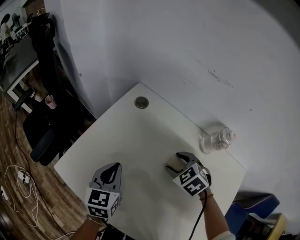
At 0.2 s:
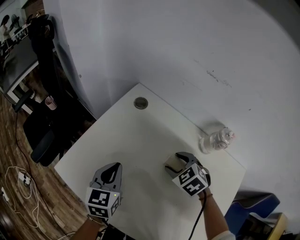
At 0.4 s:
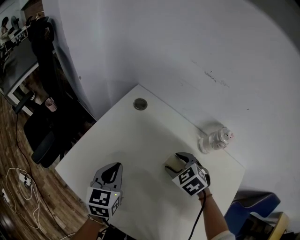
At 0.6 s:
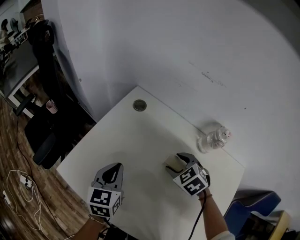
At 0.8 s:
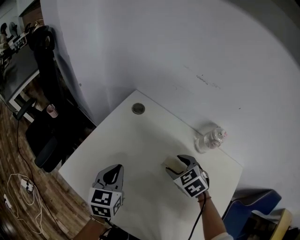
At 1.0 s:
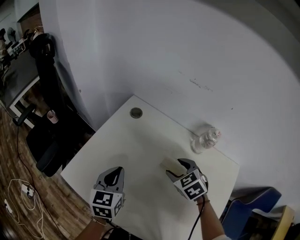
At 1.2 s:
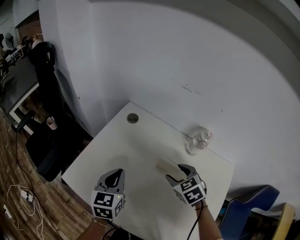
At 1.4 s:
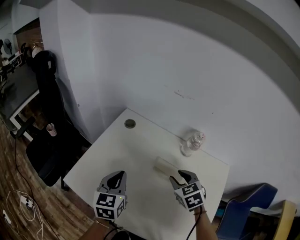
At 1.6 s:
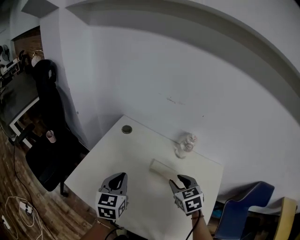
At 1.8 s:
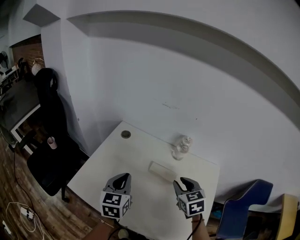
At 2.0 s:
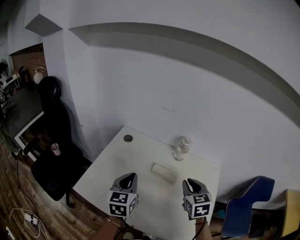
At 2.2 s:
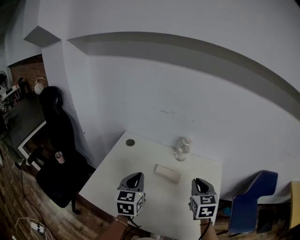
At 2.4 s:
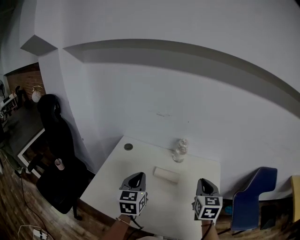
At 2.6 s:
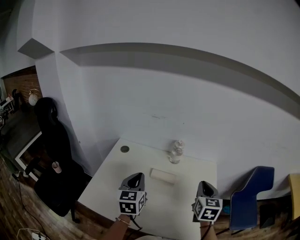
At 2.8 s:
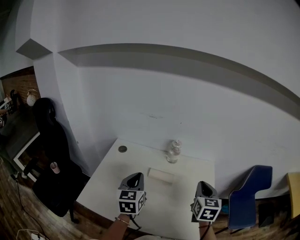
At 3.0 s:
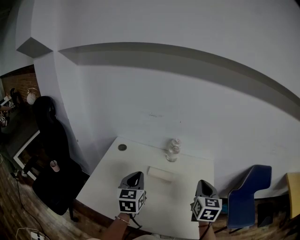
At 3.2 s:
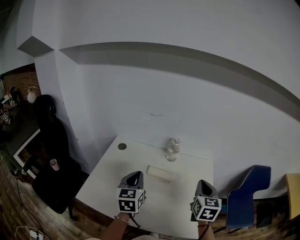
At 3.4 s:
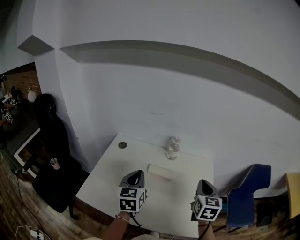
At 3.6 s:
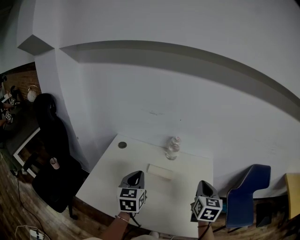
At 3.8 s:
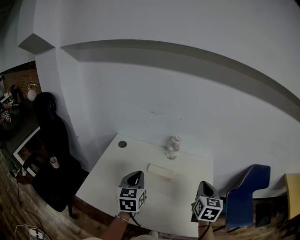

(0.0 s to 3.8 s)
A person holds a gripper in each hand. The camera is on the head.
0.0 s - 1.2 s: Both grippers travel together upward, about 5 cm.
1.2 s - 2.6 s: The left gripper moves upward, approximately 10 cm. The right gripper changes place by roughly 25 cm, tilts its fingers approximately 30 degrees upward, and closes its fingers.
2.6 s - 3.8 s: The grippers move only a little.

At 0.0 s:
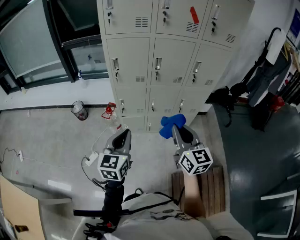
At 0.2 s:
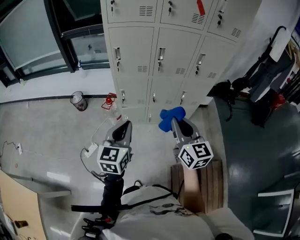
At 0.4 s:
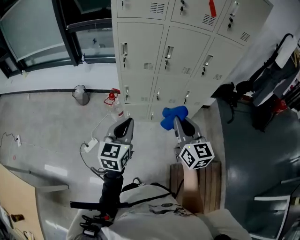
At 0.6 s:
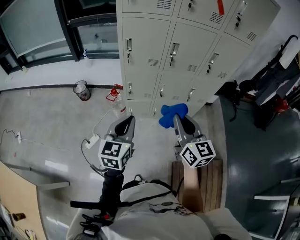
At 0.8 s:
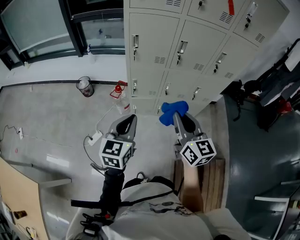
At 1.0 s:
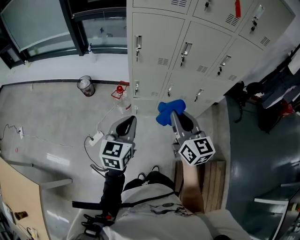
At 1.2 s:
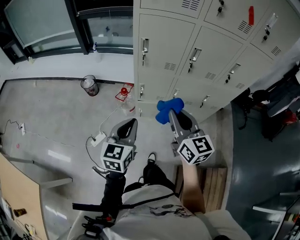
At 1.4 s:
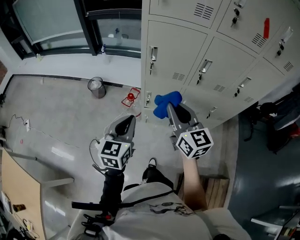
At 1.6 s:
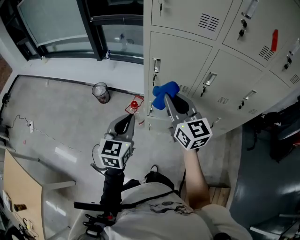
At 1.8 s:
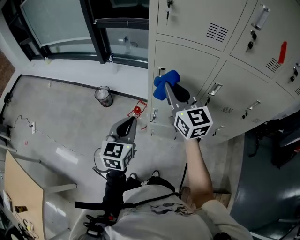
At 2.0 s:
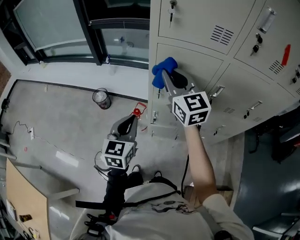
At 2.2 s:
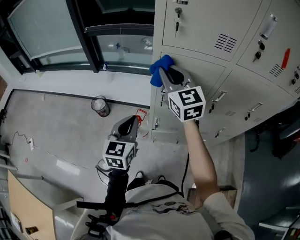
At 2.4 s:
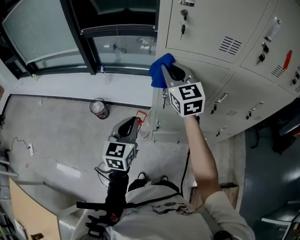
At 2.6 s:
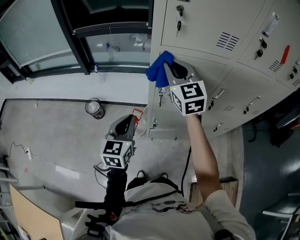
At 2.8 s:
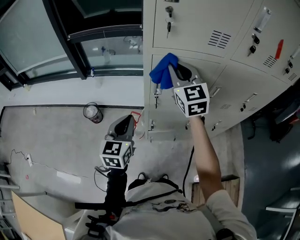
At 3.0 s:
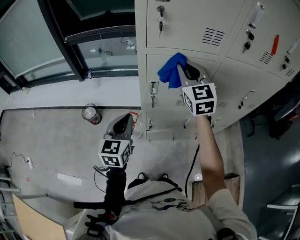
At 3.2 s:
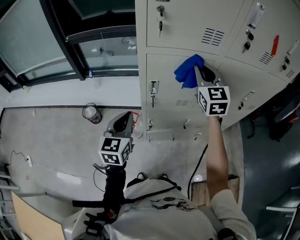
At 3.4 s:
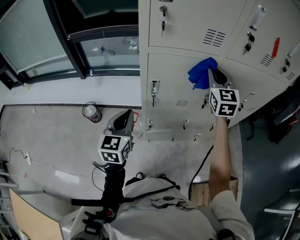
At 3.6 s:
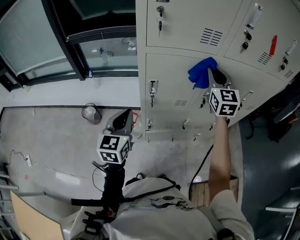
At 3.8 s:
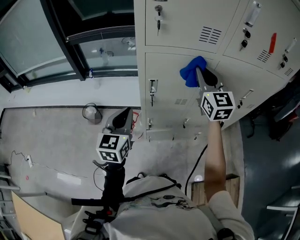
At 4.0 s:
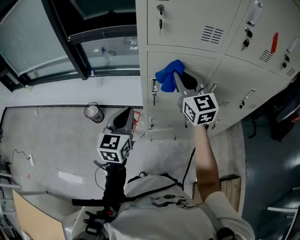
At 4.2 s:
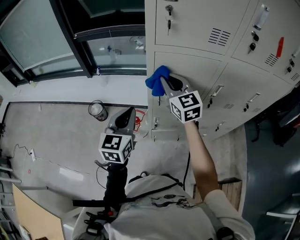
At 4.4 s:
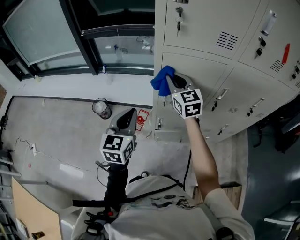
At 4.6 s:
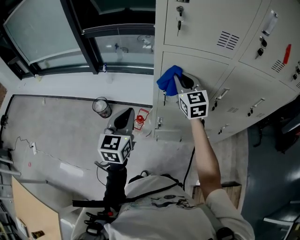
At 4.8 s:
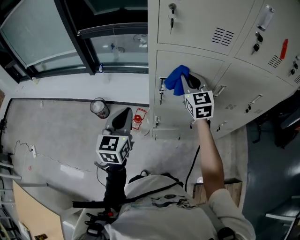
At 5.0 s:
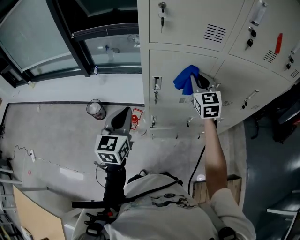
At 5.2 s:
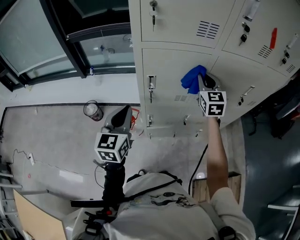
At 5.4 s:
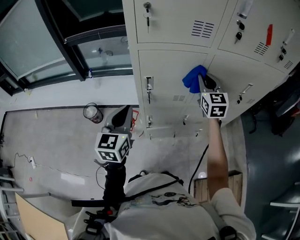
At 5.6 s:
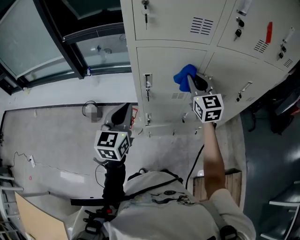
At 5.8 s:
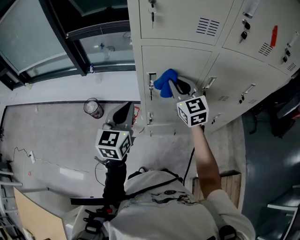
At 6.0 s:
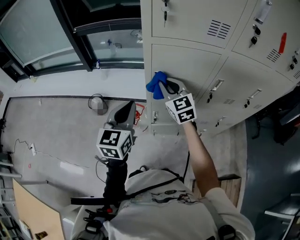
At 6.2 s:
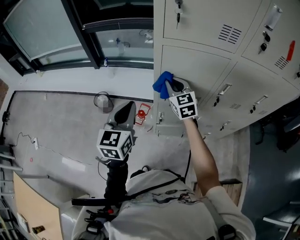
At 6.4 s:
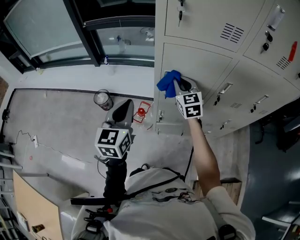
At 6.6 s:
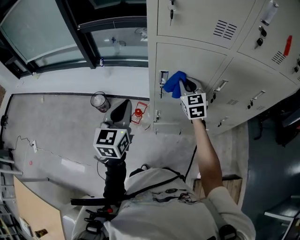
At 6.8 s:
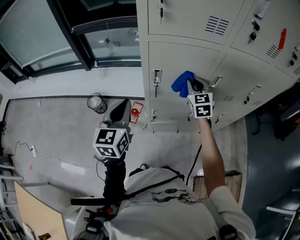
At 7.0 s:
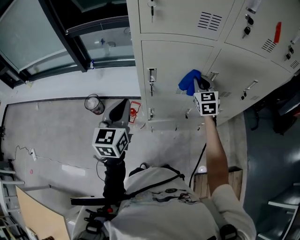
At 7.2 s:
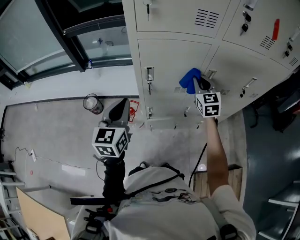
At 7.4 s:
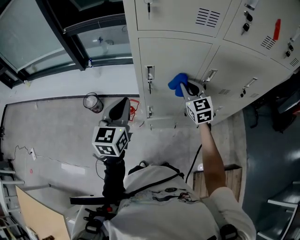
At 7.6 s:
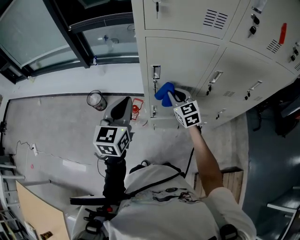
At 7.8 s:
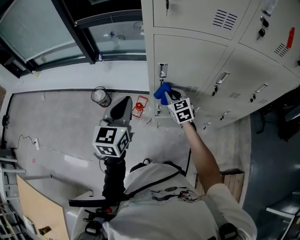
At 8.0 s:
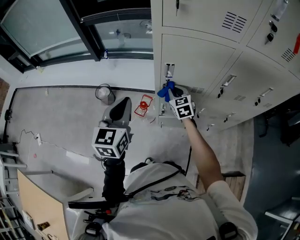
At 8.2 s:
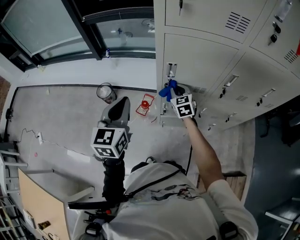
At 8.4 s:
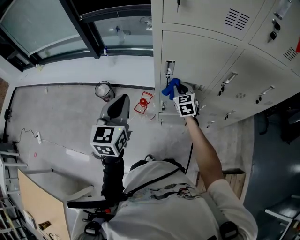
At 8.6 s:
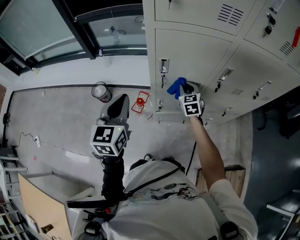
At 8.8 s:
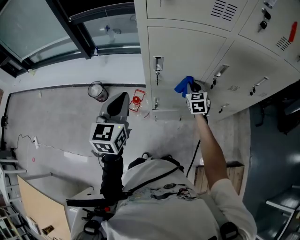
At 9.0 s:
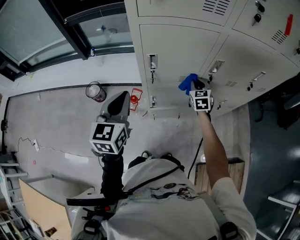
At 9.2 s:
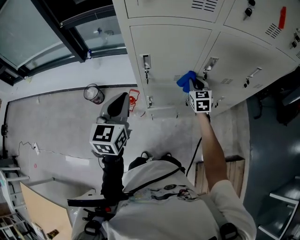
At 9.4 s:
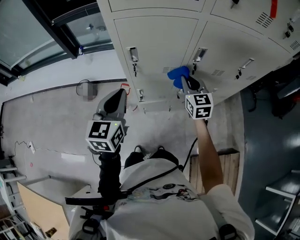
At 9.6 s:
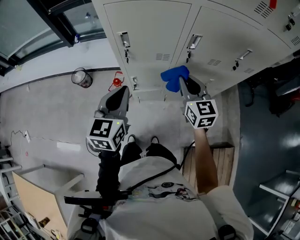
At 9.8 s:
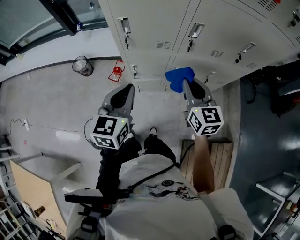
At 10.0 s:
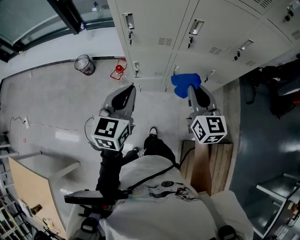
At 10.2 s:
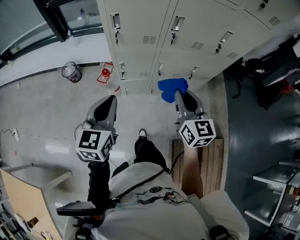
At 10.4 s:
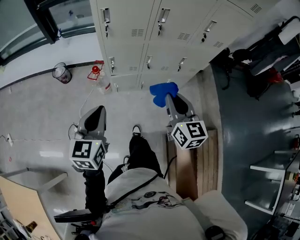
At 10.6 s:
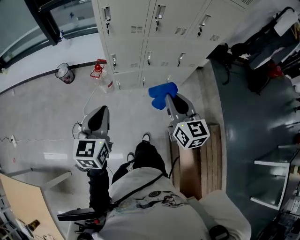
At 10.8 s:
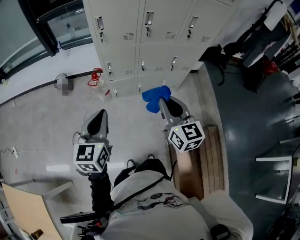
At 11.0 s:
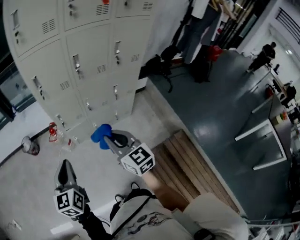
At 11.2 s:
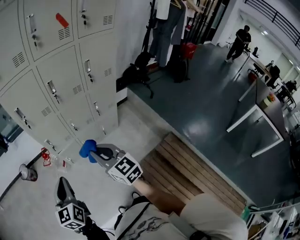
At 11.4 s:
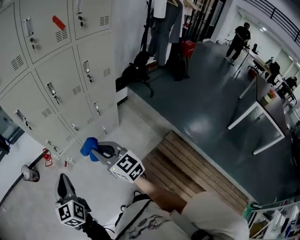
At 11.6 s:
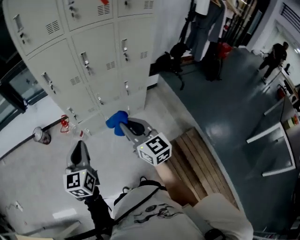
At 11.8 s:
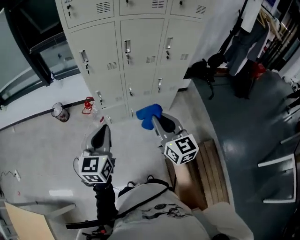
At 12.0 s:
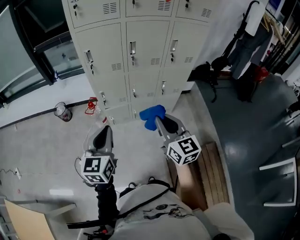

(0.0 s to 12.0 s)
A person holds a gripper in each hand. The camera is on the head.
0.0 s - 1.6 s: Both grippers move forward and to the left, roughly 30 cm. The right gripper swivels about 20 degrees.
1.6 s - 3.0 s: The grippers both shift forward by about 20 cm. The right gripper swivels about 30 degrees.
3.0 s - 4.4 s: The right gripper goes roughly 10 cm to the left and downward.
4.4 s - 6.0 s: The right gripper moves approximately 20 cm to the right and comes back.
6.0 s - 7.6 s: The right gripper shifts roughly 10 cm downward, and moves approximately 20 cm to the right and comes back.
7.6 s - 9.0 s: The right gripper heads to the right and downward, covering some 15 cm, and turns by roughly 20 degrees.
9.0 s - 10.4 s: Both grippers travel together backward, approximately 35 cm. The right gripper swivels some 30 degrees.
10.4 s - 12.0 s: The right gripper travels backward and upward by some 10 cm. Meanwhile the left gripper moves to the right, upward and backward, roughly 15 cm.

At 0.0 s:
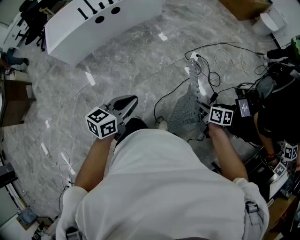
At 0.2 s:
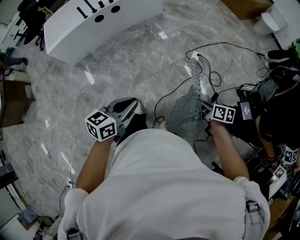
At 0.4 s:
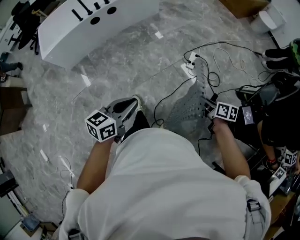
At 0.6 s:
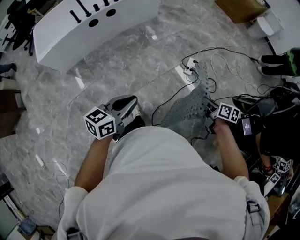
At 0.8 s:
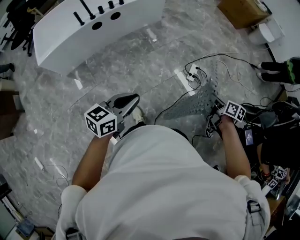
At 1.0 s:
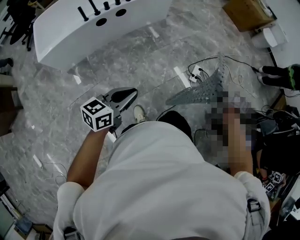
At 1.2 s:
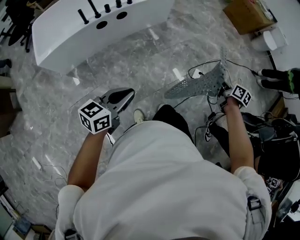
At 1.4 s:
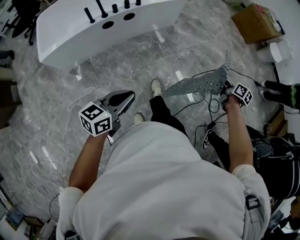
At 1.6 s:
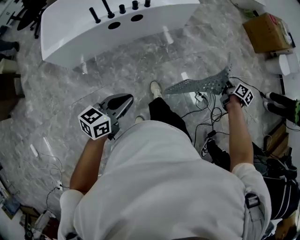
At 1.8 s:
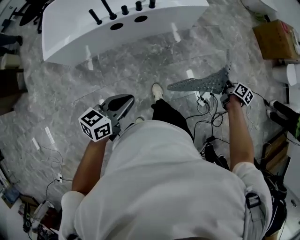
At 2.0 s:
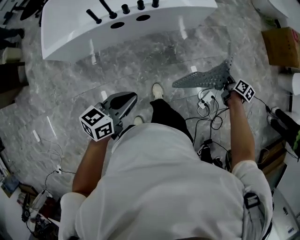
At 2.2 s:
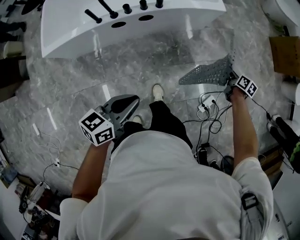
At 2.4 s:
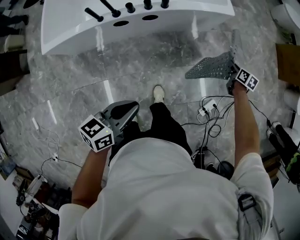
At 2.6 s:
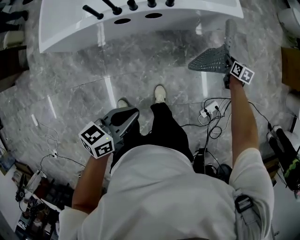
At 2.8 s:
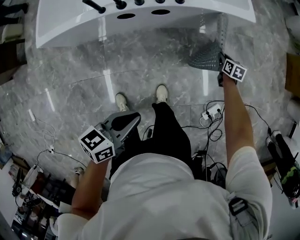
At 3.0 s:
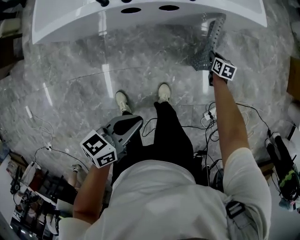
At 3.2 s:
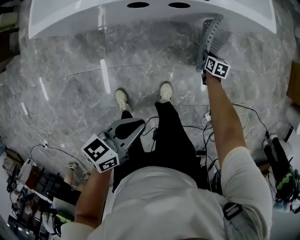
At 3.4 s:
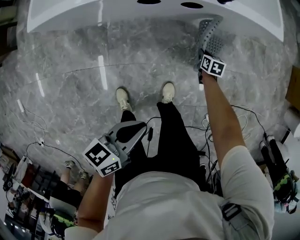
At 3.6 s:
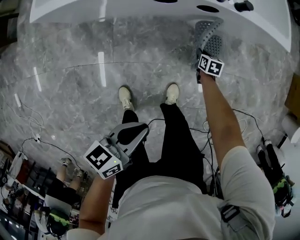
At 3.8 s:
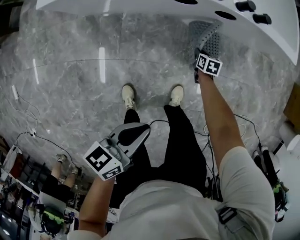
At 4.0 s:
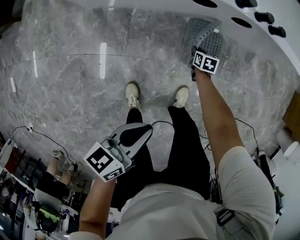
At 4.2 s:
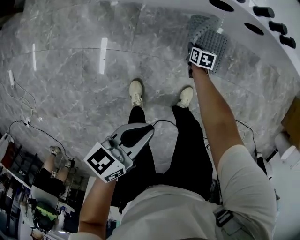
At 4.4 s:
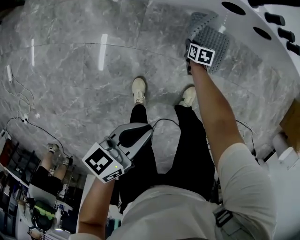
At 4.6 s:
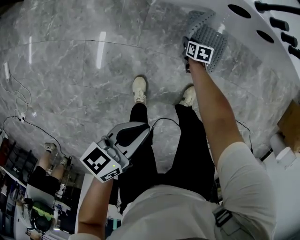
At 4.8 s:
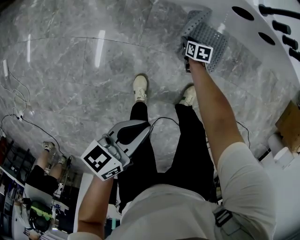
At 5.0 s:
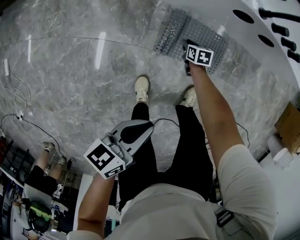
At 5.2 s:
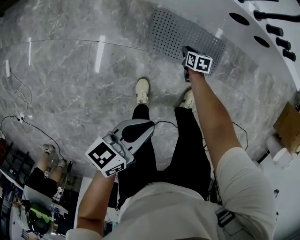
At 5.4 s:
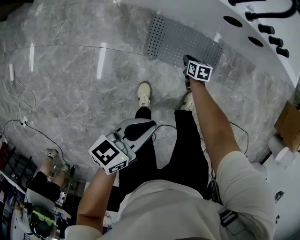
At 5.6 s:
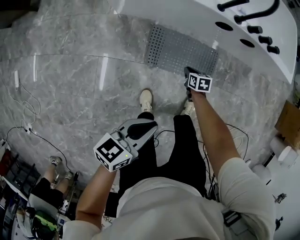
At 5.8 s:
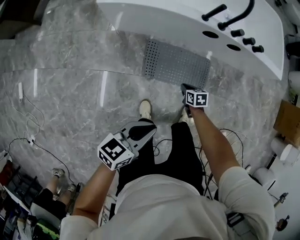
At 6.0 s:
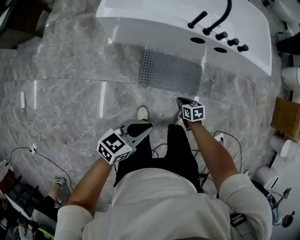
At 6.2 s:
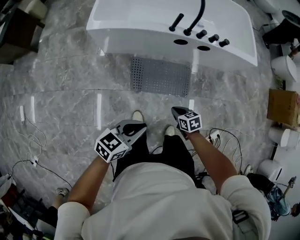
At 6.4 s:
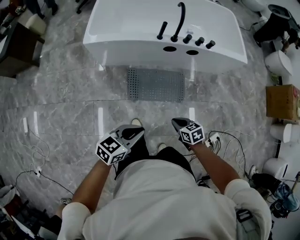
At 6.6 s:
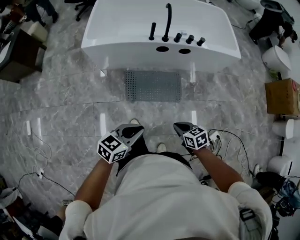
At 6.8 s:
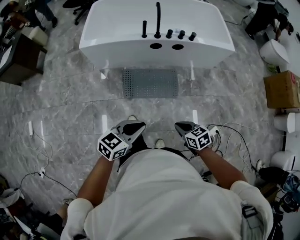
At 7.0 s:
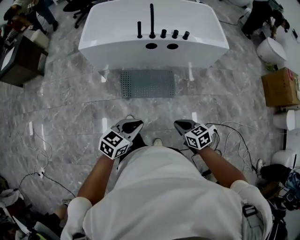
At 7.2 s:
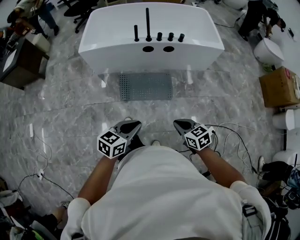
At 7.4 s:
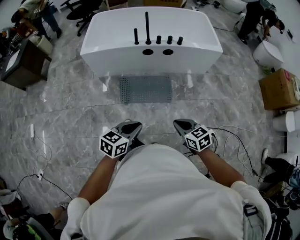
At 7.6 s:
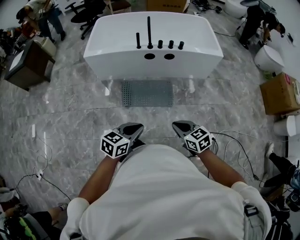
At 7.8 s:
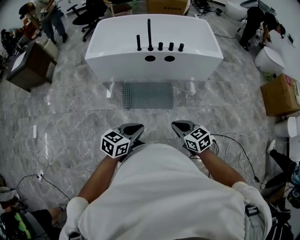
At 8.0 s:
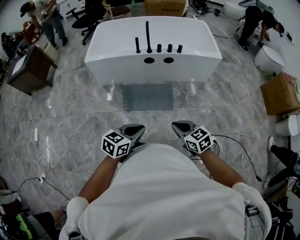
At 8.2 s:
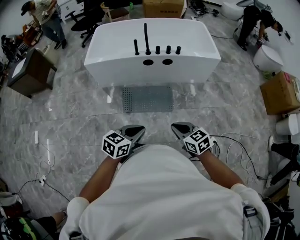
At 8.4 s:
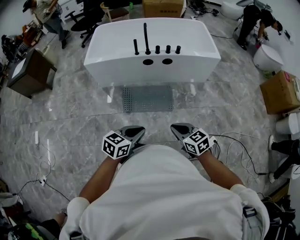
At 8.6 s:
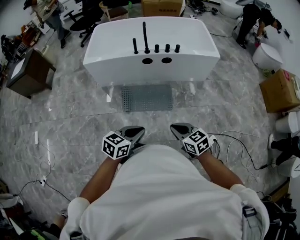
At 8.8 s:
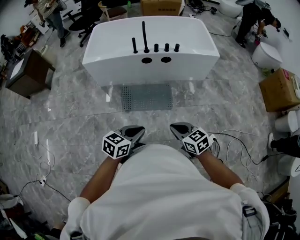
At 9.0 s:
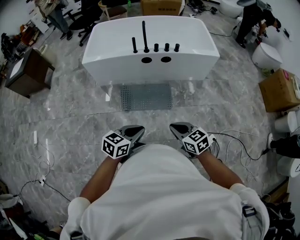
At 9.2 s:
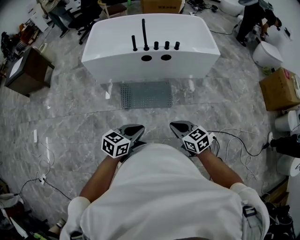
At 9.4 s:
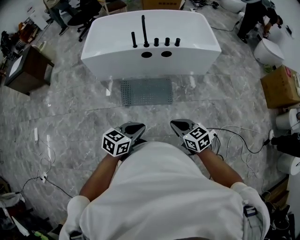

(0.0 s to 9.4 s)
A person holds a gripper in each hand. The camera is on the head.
0.0 s - 1.6 s: The pair of grippers is taken forward and to the left, some 50 cm.
1.6 s - 3.2 s: The right gripper is displaced to the left, downward and forward by roughly 60 cm, and rotates around the line of its fingers by about 40 degrees, counterclockwise from behind; the left gripper shifts approximately 25 cm forward and downward, and swivels approximately 30 degrees.
3.2 s - 4.8 s: The left gripper travels to the left by some 25 cm. The right gripper heads to the left, covering roughly 50 cm, swivels approximately 20 degrees, and opens its fingers.
4.8 s - 6.2 s: The left gripper goes about 15 cm upward, and turns by approximately 40 degrees. The right gripper travels upward and backward by roughly 40 cm, and closes its fingers.
6.2 s - 7.8 s: The right gripper goes approximately 40 cm upward, backward and to the right, and changes its angle by about 30 degrees; the left gripper travels to the right, backward and upward by approximately 30 cm.
7.8 s - 9.4 s: The grippers stay close to where they were, moving slightly.
